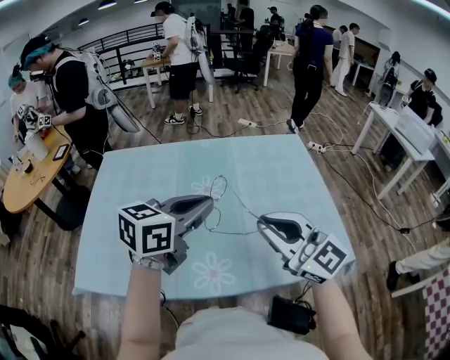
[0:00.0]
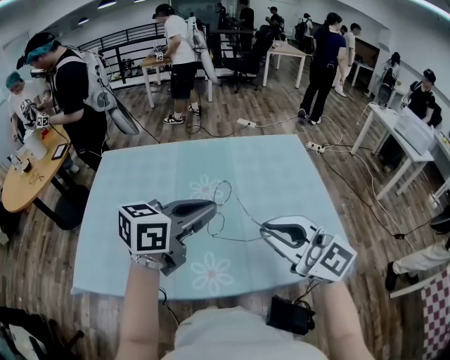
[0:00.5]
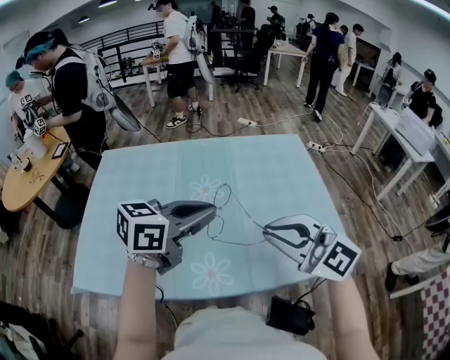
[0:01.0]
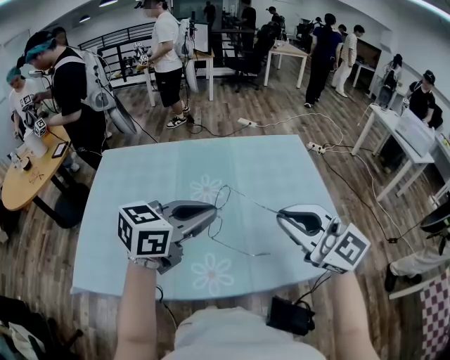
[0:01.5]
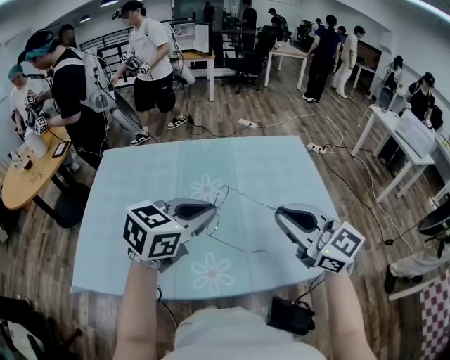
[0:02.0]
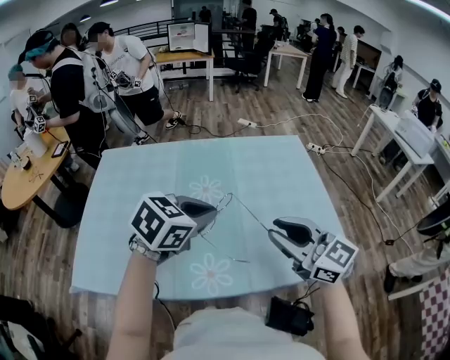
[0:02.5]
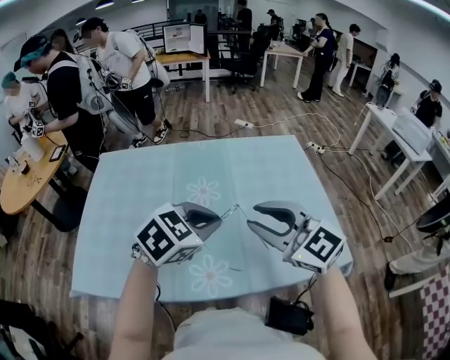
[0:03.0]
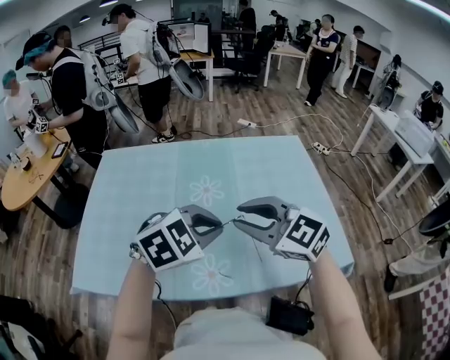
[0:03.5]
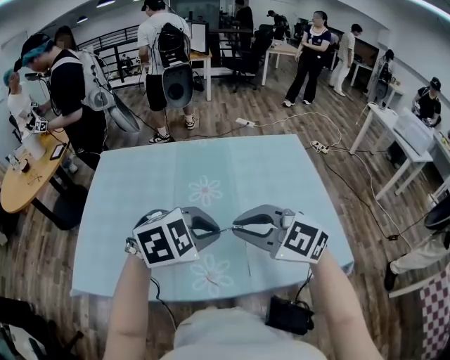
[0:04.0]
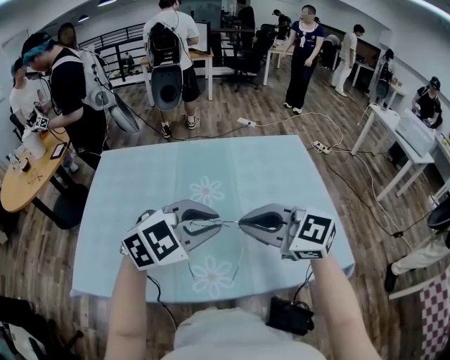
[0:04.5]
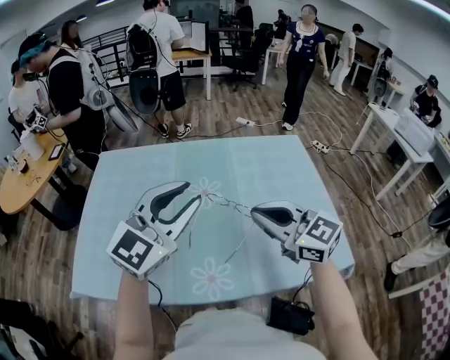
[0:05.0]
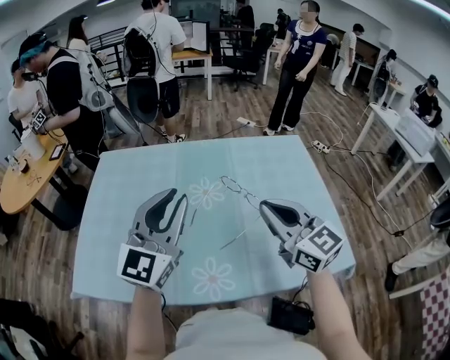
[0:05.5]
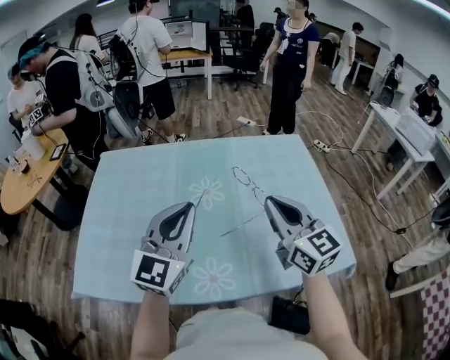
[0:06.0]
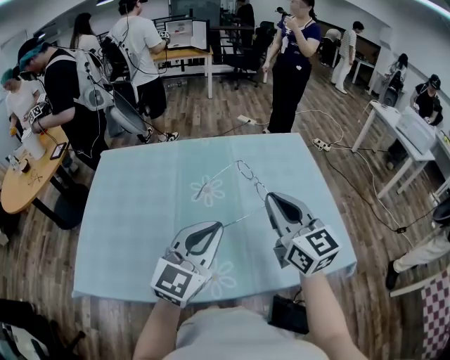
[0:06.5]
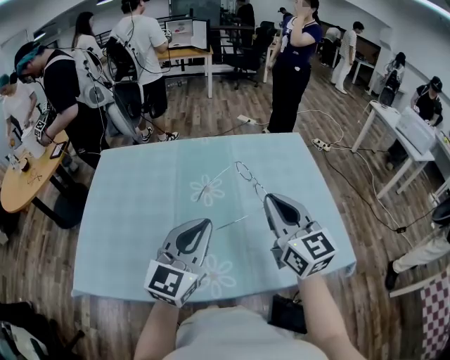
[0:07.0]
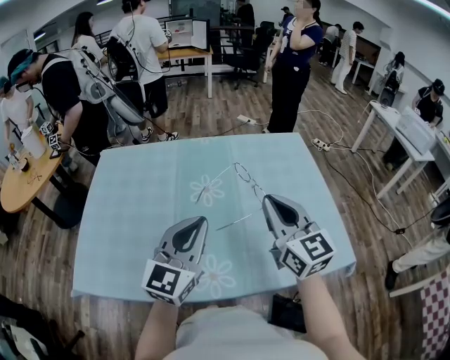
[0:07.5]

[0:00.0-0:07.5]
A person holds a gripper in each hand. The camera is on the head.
0:00.0 to 0:02.0: The grippers move only a little.
0:02.0 to 0:04.0: The right gripper ends up about 10 cm from where it was, and turns by some 30 degrees. Meanwhile the left gripper ends up some 5 cm from where it was, and turns by roughly 40 degrees.
0:04.0 to 0:05.5: The right gripper changes place by approximately 10 cm, and swivels about 40 degrees. The left gripper moves about 15 cm, and points its fingers some 60 degrees further upward.
0:05.5 to 0:07.5: The left gripper moves downward, roughly 5 cm.

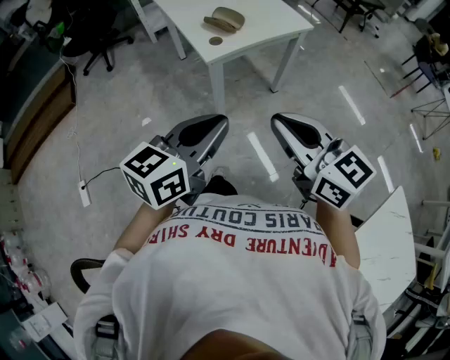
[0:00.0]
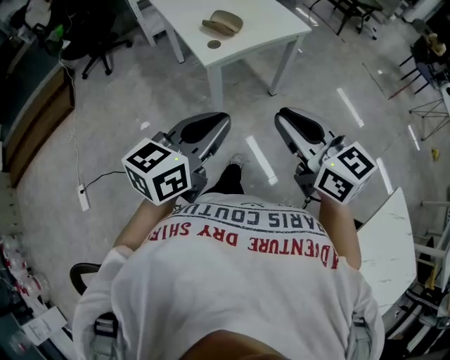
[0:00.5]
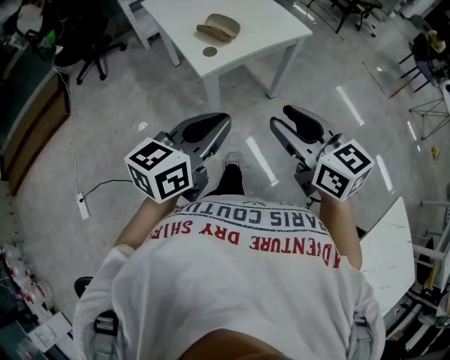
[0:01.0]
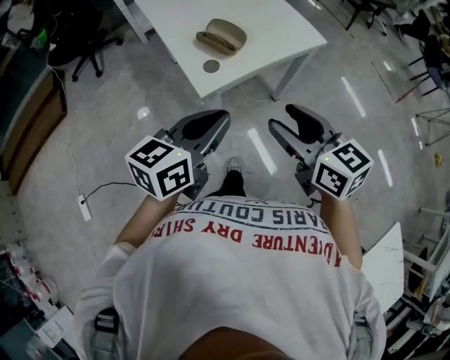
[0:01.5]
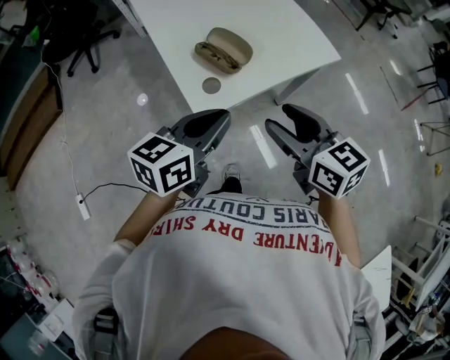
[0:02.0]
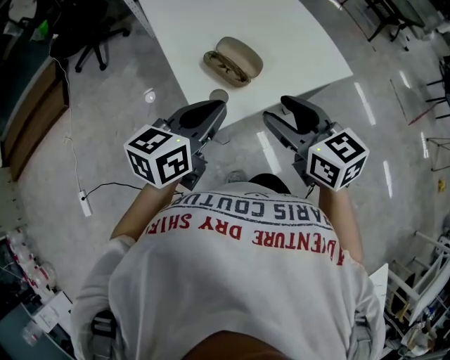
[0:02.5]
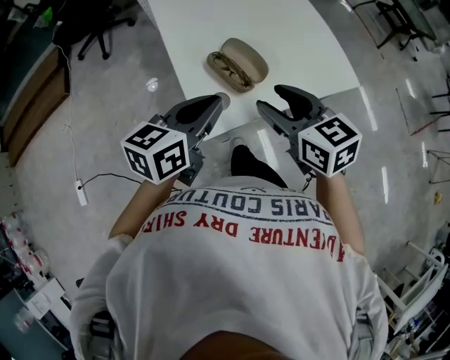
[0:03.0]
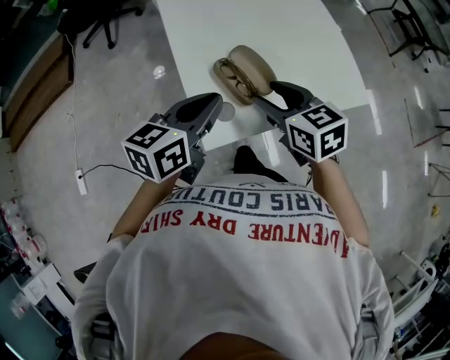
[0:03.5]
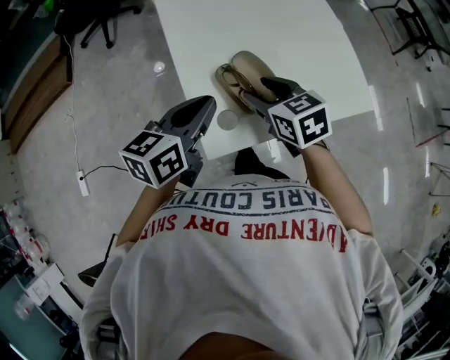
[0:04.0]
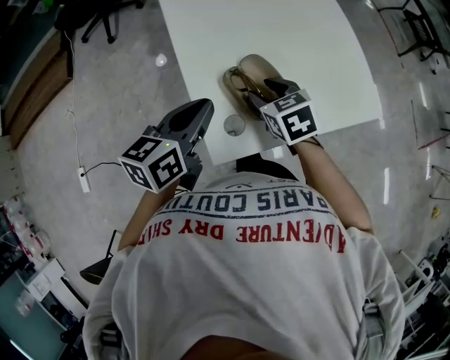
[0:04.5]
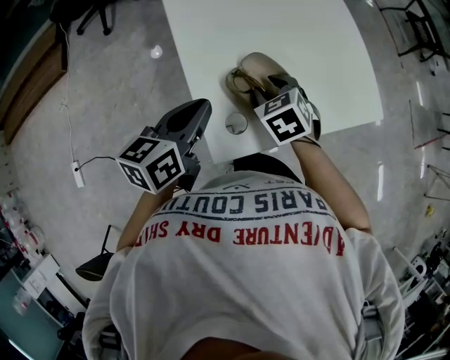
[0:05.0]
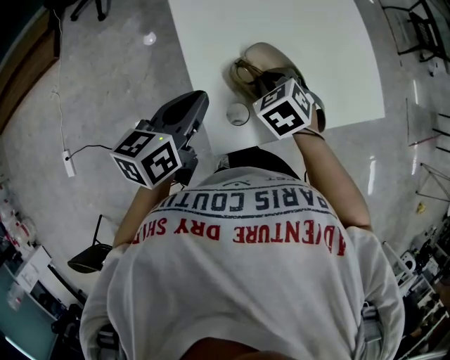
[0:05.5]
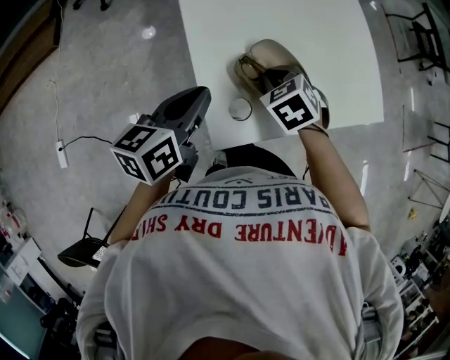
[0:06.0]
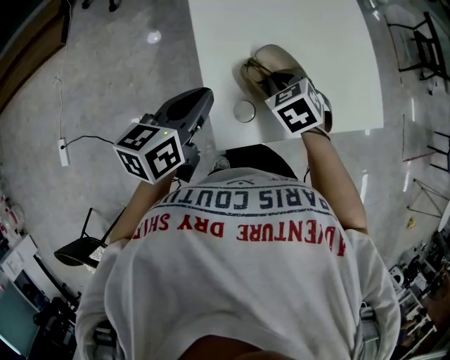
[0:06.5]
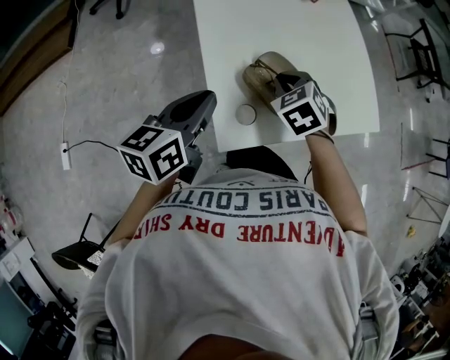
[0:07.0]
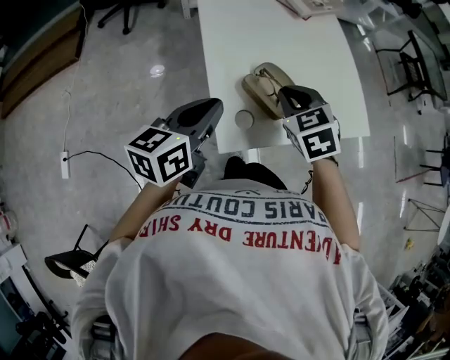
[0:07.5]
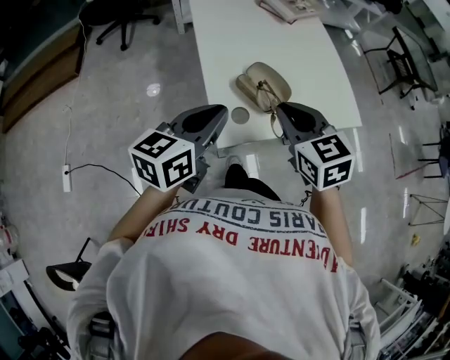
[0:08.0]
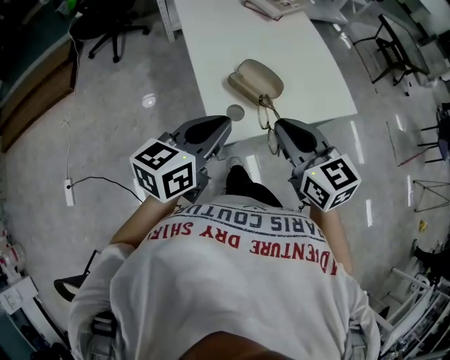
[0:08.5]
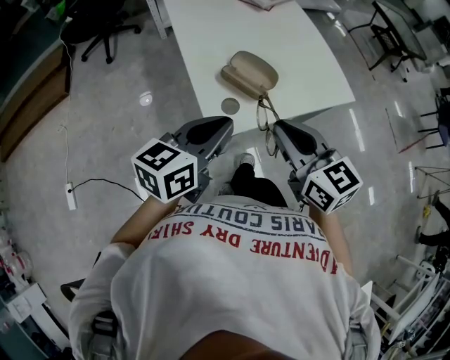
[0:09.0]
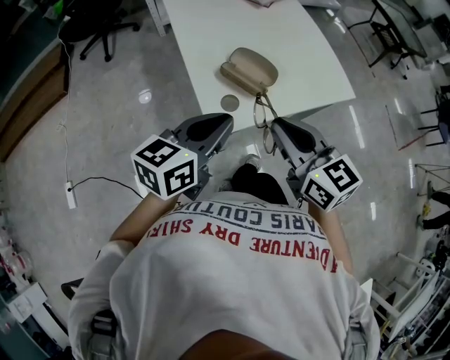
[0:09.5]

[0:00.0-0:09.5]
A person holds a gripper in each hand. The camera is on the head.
0:00.0 to 0:02.0: The two grippers go roughly 35 cm forward. The right gripper opens.
0:02.0 to 0:04.0: The right gripper travels forward and downward by approximately 25 cm, and turns by roughly 20 degrees, while the left gripper goes about 15 cm forward.
0:04.0 to 0:05.5: The right gripper moves downward, roughly 10 cm, changes its angle by about 40 degrees, and closes its fingers. The left gripper travels to the left and downward by some 10 cm.
0:05.5 to 0:07.5: The left gripper is displaced upward and backward by roughly 10 cm; the right gripper travels upward by approximately 15 cm.
0:07.5 to 0:09.5: The left gripper moves backward and to the right, some 10 cm. Meanwhile the right gripper moves backward and upward, roughly 20 cm, and tips its fingers upward by some 30 degrees.

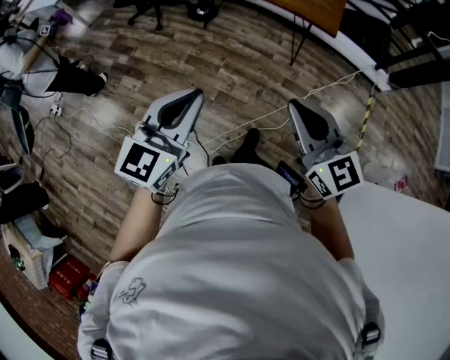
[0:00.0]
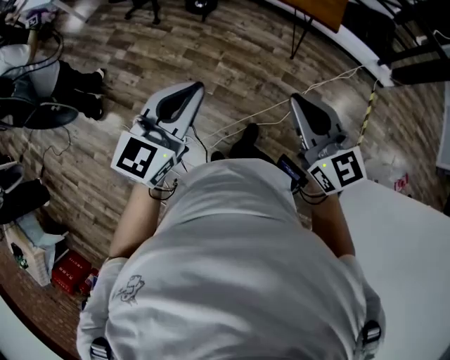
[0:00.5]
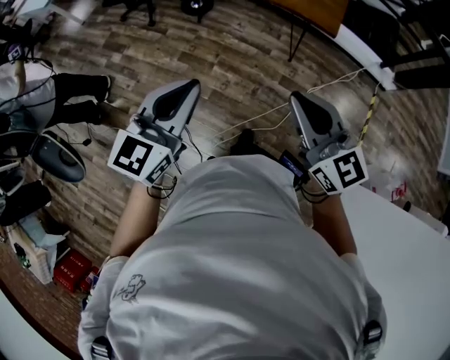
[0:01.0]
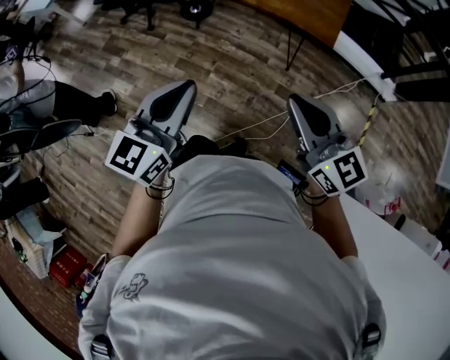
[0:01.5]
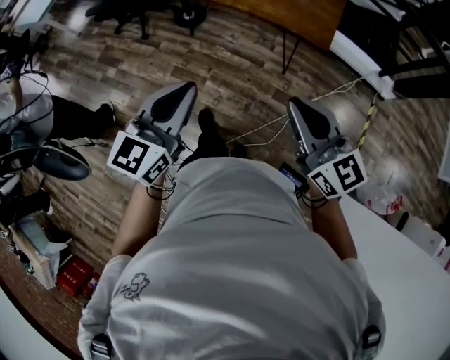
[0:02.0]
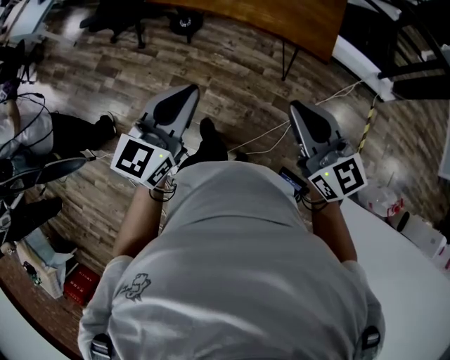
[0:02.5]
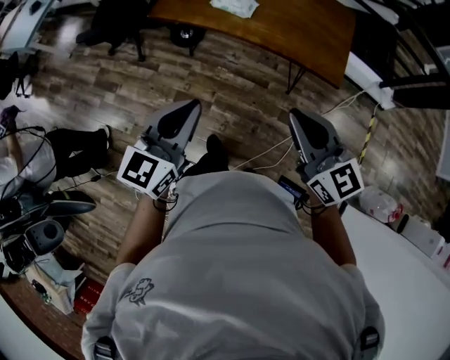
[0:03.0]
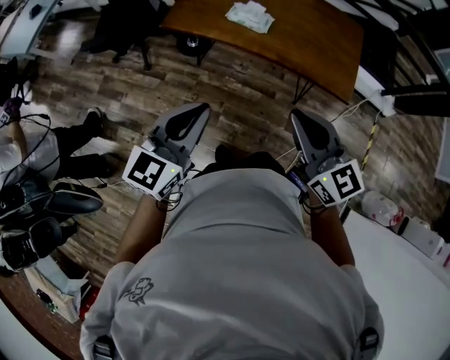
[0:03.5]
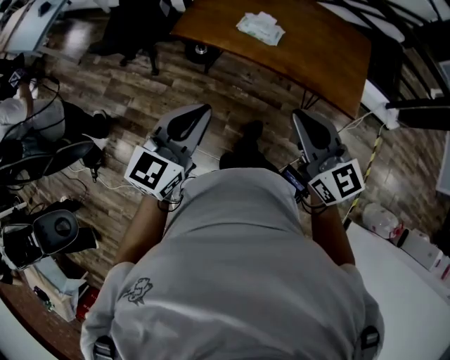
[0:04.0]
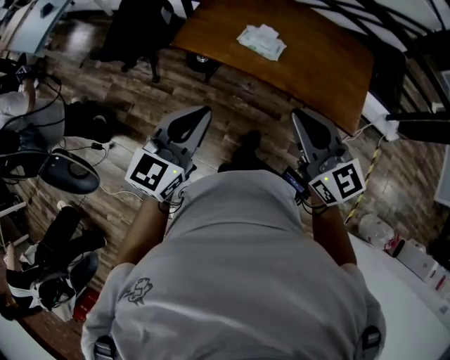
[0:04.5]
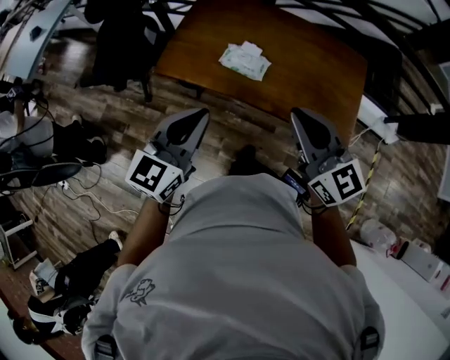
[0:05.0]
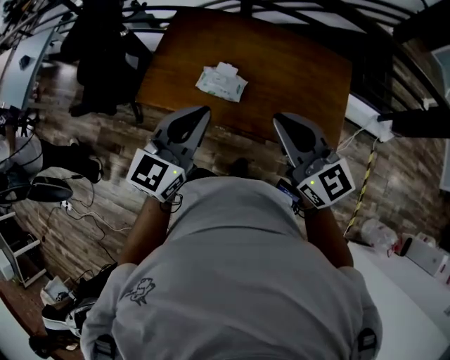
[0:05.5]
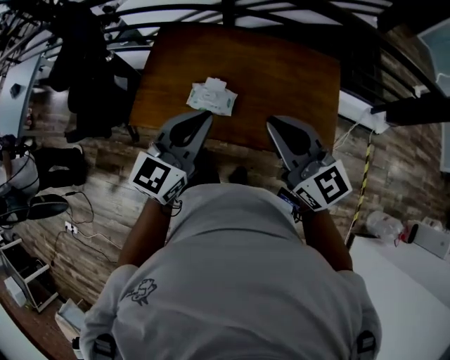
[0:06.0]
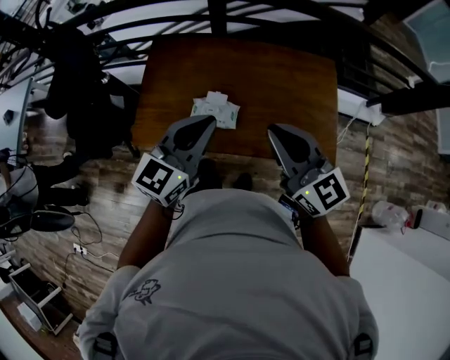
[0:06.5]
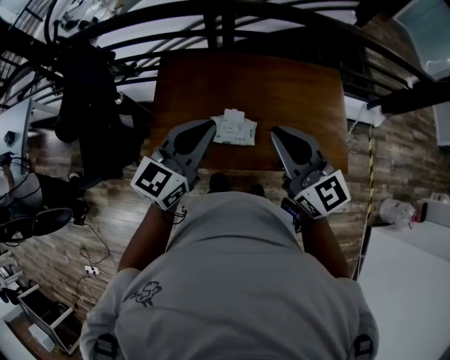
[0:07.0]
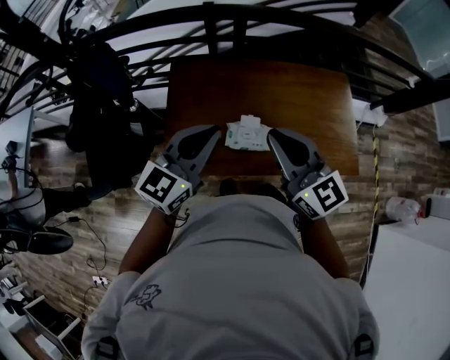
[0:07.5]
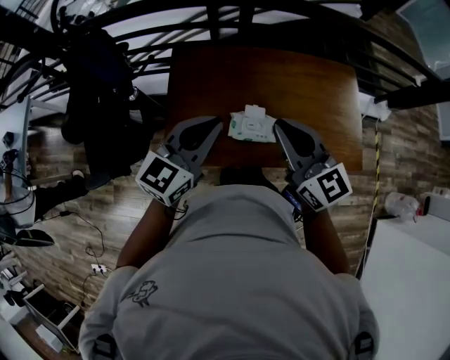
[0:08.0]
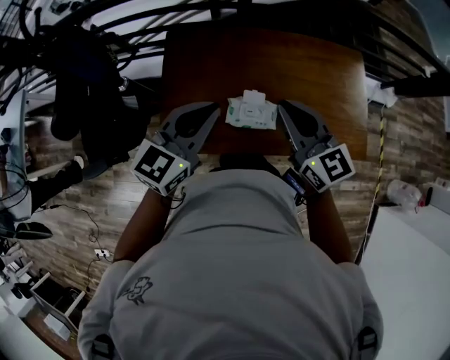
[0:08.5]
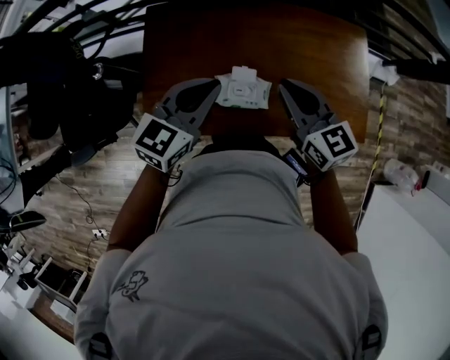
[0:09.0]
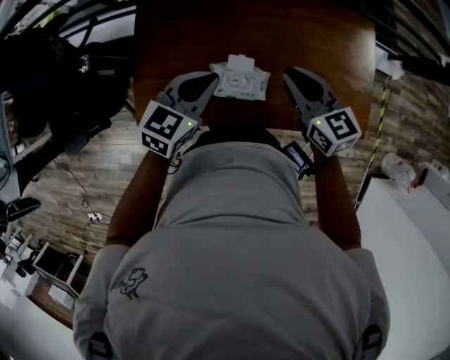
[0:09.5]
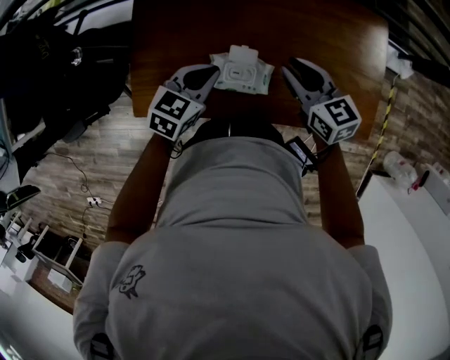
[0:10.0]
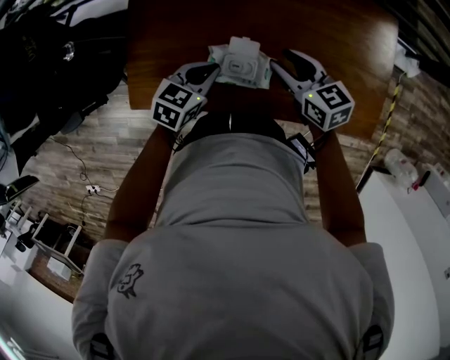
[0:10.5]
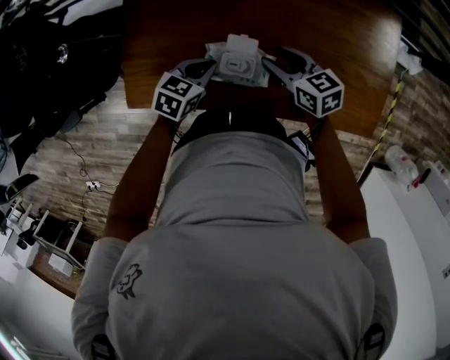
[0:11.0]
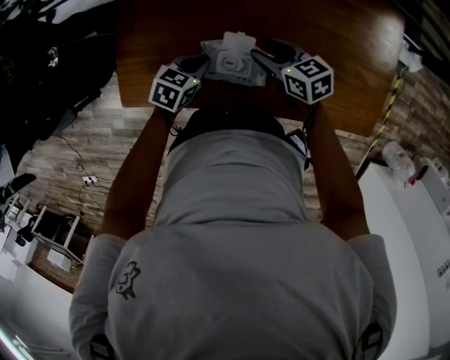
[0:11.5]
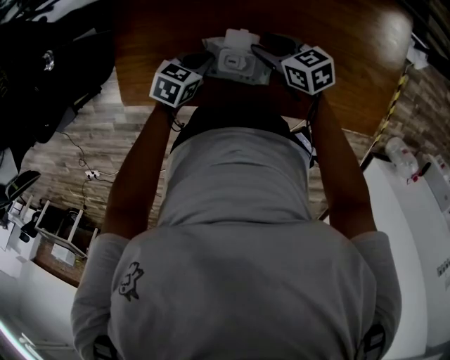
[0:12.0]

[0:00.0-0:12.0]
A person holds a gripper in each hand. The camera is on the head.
0:00.0 to 0:02.0: Both grippers travel together forward and to the right, about 30 cm.
0:02.0 to 0:04.0: The grippers both shift forward and to the left by roughly 35 cm.
0:04.0 to 0:06.0: Both grippers travel together forward and to the right, roughly 35 cm.
0:06.0 to 0:08.0: Both grippers travel together to the left and forward, some 20 cm.
0:08.0 to 0:10.0: The left gripper travels downward by roughly 25 cm, and changes its angle by roughly 30 degrees, while the right gripper heads downward and forward, covering about 25 cm, and swivels some 30 degrees.
0:10.0 to 0:12.0: The two grippers go roughly 15 cm downward. The left gripper turns by some 20 degrees, while the right gripper turns by some 20 degrees, and opens up.
